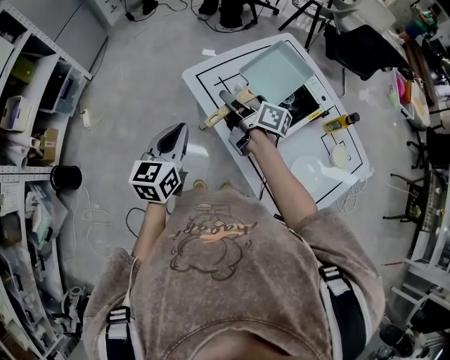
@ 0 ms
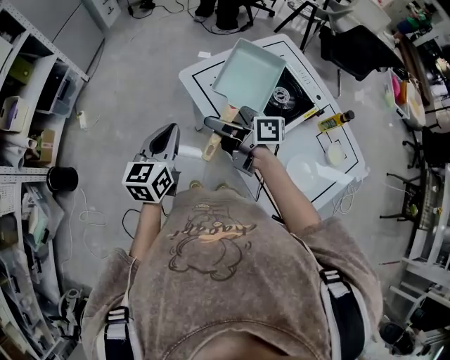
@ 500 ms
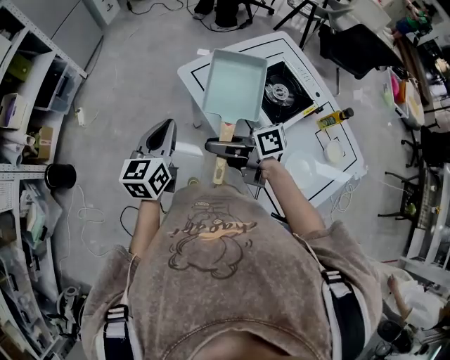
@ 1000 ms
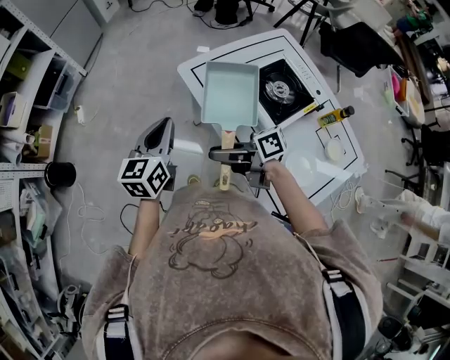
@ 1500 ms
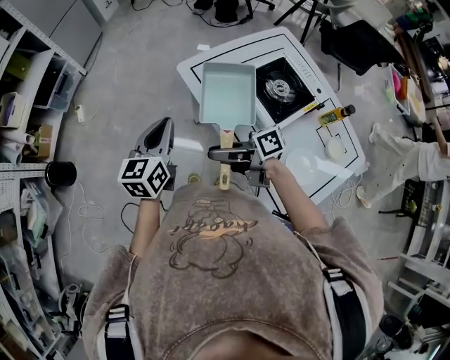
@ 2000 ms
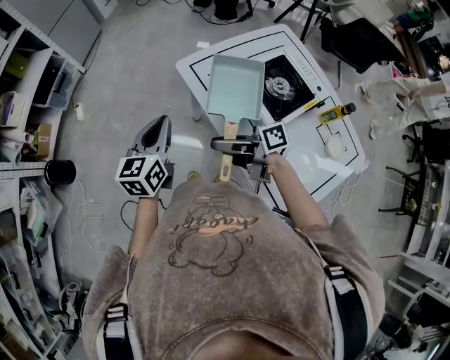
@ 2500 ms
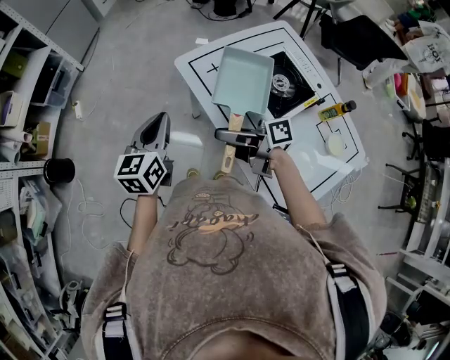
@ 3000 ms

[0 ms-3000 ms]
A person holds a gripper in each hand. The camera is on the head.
0 ms to 1500 ms: The right gripper heads backward and to the left, covering roughly 20 cm, and changes its angle by roughly 40 degrees.
1500 ms to 3000 ms: There are only small adjustments of the grippers.

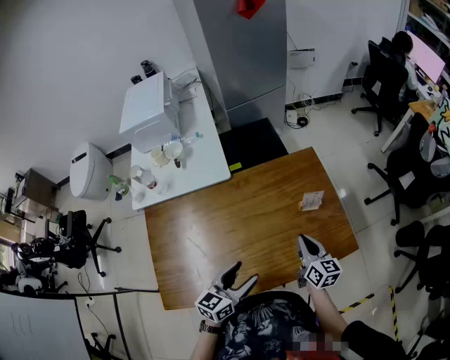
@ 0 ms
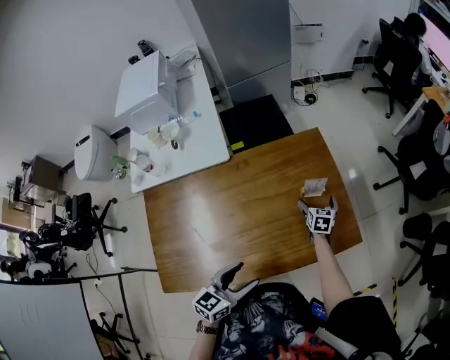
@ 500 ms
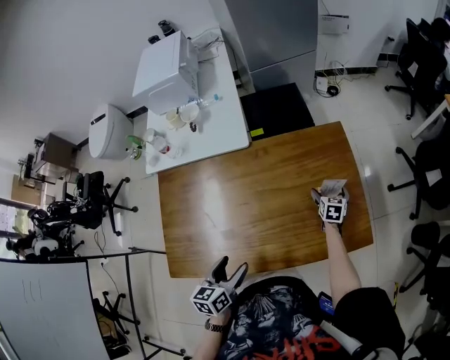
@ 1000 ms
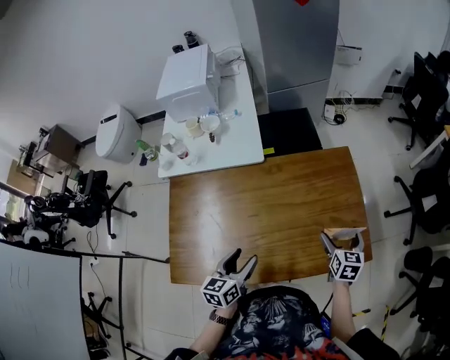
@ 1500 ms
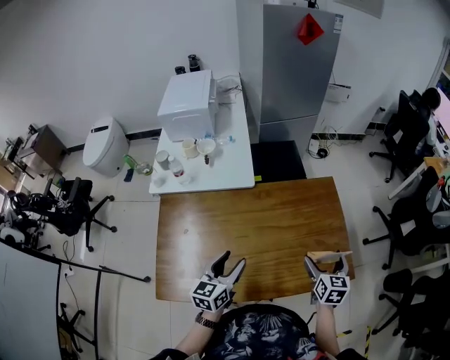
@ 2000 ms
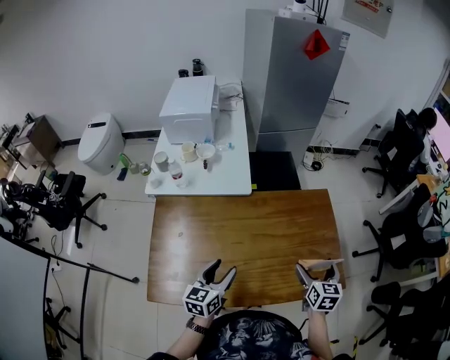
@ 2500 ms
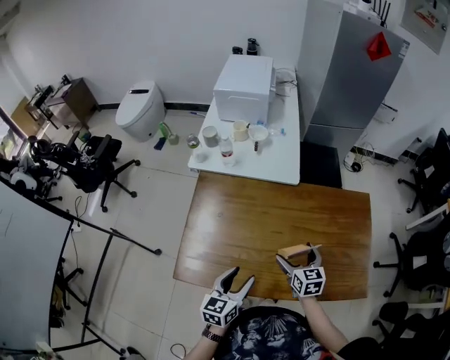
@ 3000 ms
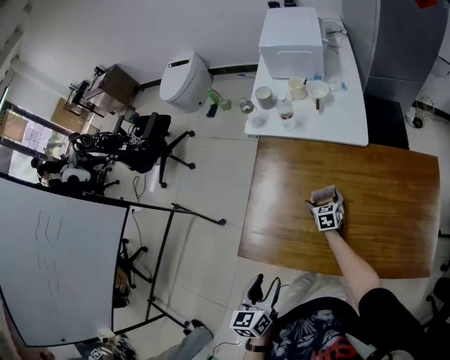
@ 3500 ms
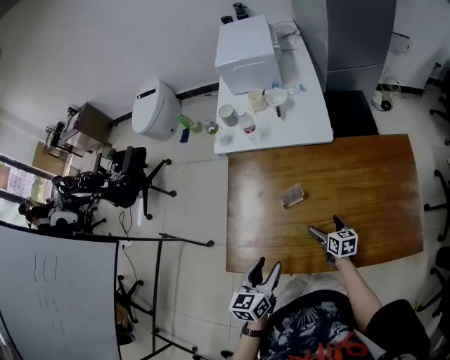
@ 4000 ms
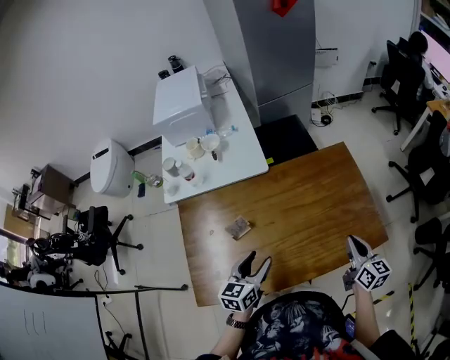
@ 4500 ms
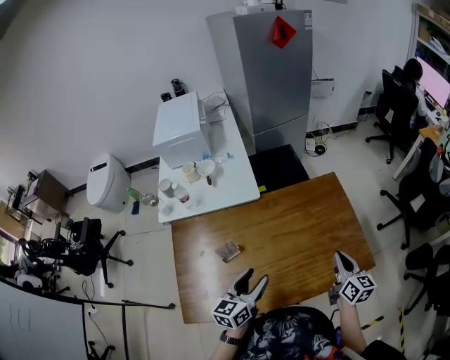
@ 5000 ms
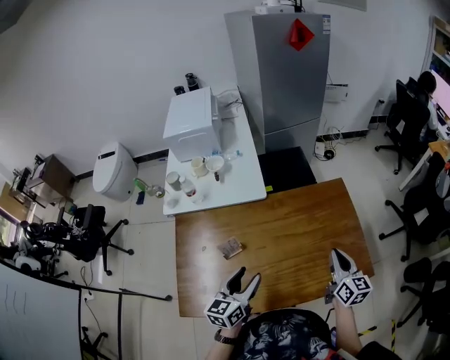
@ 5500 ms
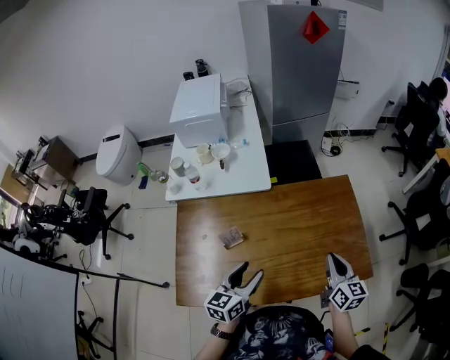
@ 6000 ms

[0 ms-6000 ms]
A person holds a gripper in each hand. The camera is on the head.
0 ms to 2000 ms: The right gripper goes downward and returns, approximately 20 cm each way, swivels roughly 20 degrees, and opens, while the left gripper travels to the left by approximately 10 cm, and turns by some 20 degrees.
2000 ms to 4000 ms: The left gripper changes place by approximately 20 cm. The right gripper ends up about 35 cm from where it was, and changes its angle by about 30 degrees.
4000 ms to 6000 ms: The left gripper moves some 20 cm, and rotates some 20 degrees. The right gripper is displaced upward by roughly 25 cm, changes its angle by approximately 30 degrees, and closes up.

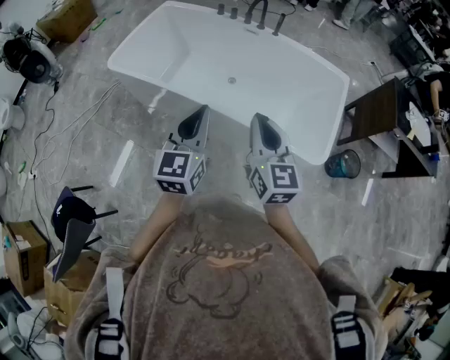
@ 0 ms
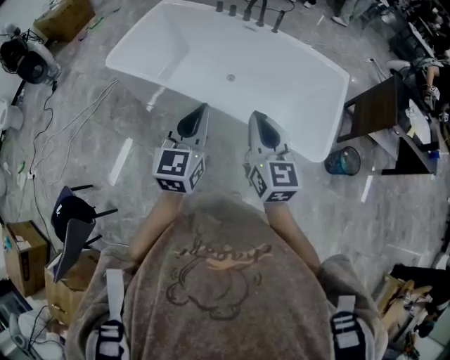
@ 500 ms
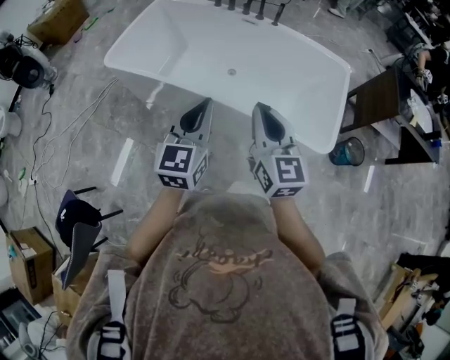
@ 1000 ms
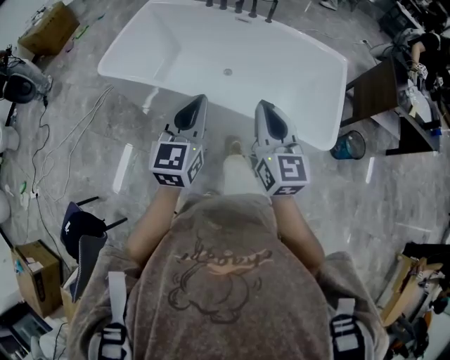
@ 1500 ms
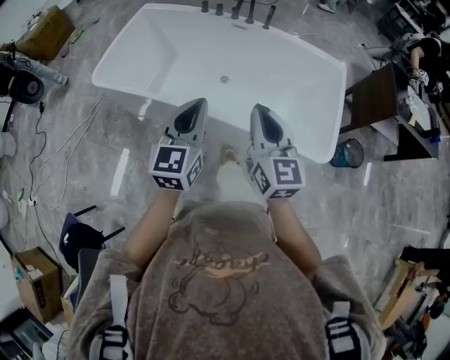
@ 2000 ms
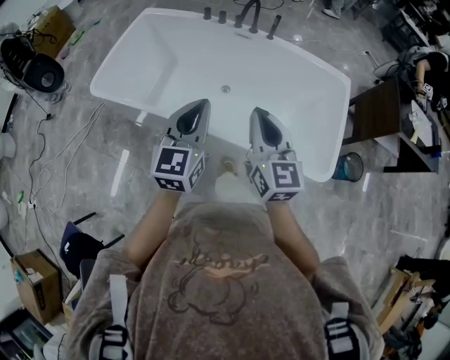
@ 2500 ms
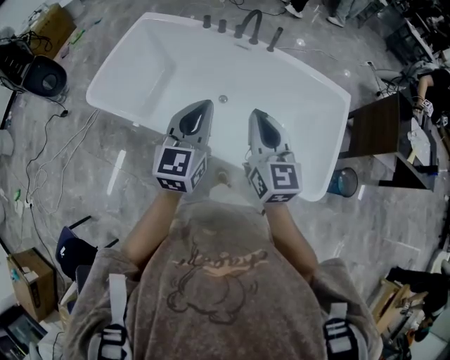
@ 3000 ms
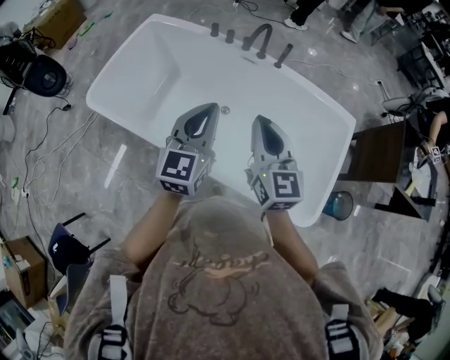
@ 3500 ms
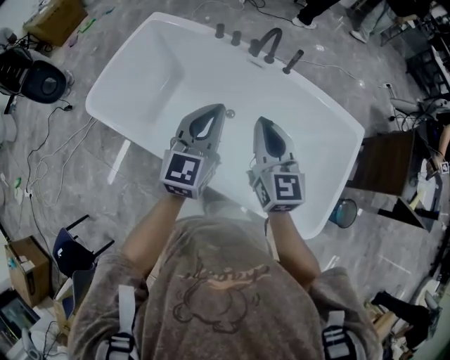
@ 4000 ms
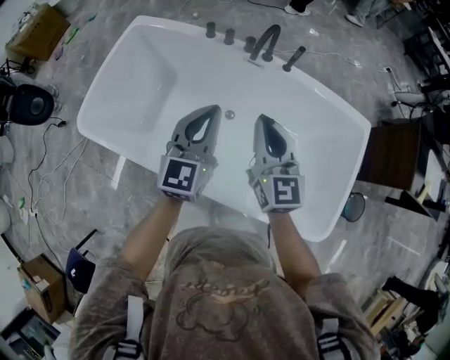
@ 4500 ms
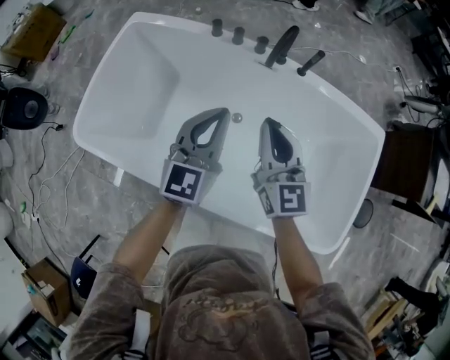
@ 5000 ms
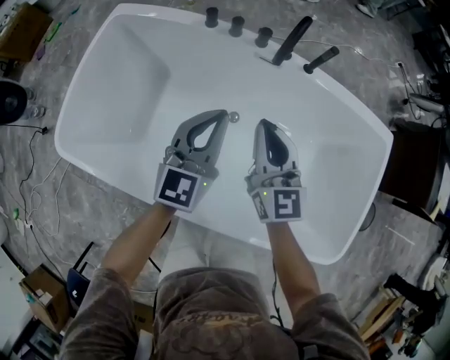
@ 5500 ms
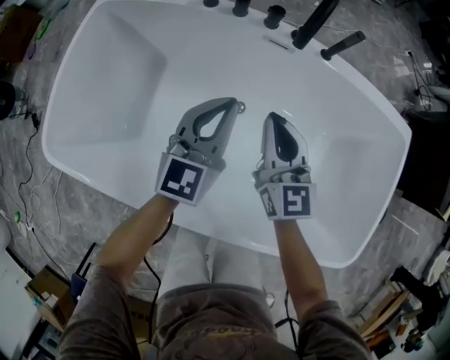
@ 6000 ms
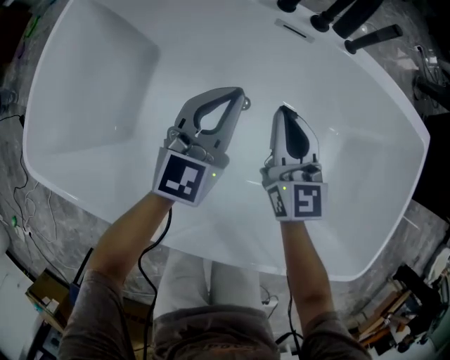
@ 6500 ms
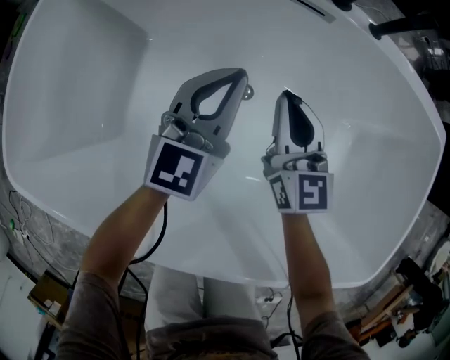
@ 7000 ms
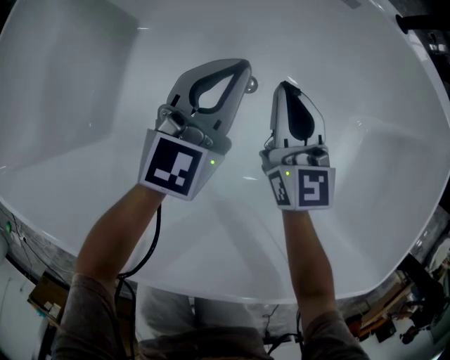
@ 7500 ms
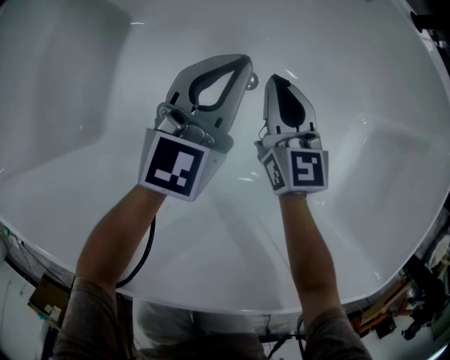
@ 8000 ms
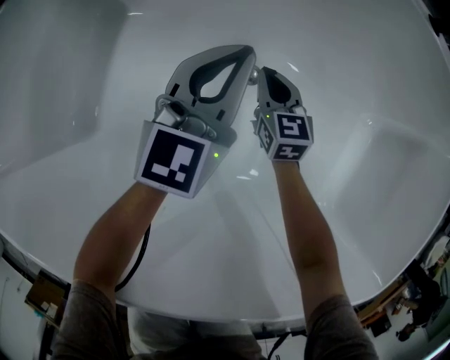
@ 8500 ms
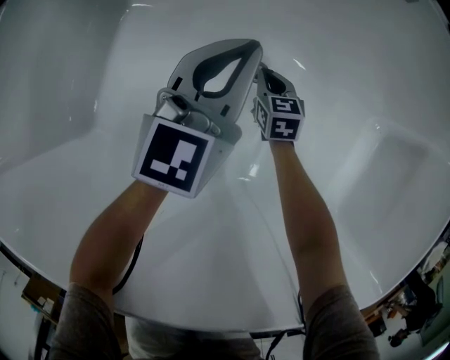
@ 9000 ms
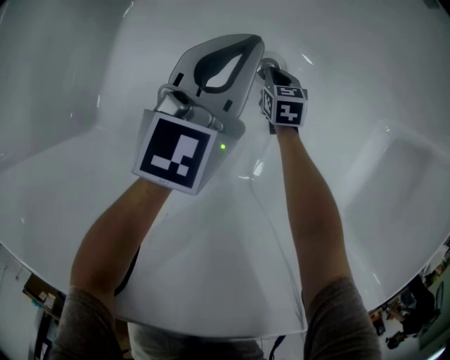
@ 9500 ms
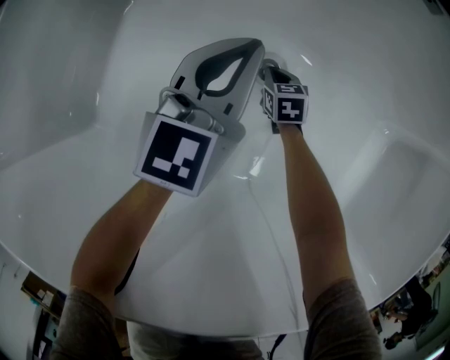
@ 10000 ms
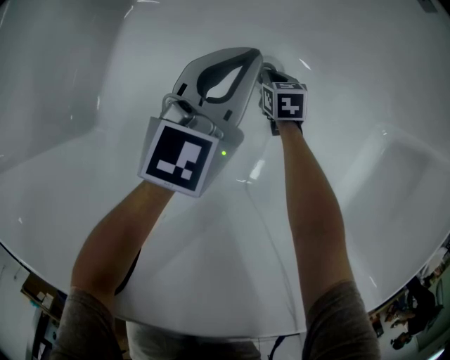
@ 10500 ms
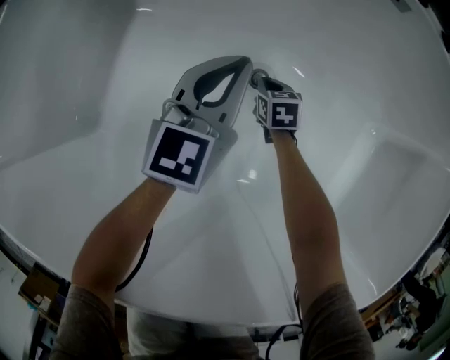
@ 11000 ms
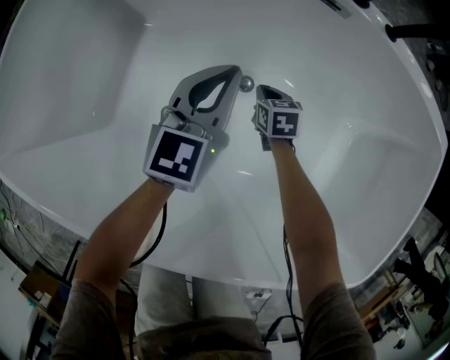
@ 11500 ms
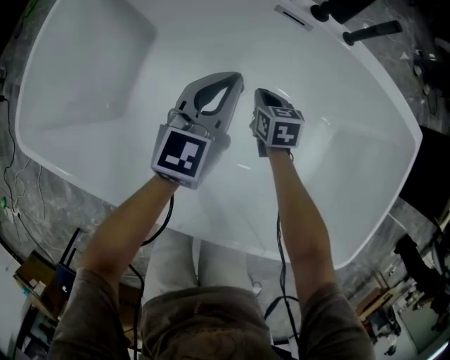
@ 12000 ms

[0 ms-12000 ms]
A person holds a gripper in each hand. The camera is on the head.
0 ms to 2000 ms: Both grippers move forward, about 10 cm.
2000 ms to 4000 ms: The grippers both shift forward by about 35 cm.
4000 ms to 6000 ms: The two grippers go about 35 cm downward and forward.
6000 ms to 8000 ms: Both grippers travel together downward, approximately 35 cm.
8000 ms to 10000 ms: The right gripper travels downward by some 30 cm, and angles its fingers downward, by roughly 40 degrees, while the left gripper travels downward by some 10 cm.
10000 ms to 12000 ms: Both grippers move upward, approximately 30 cm.

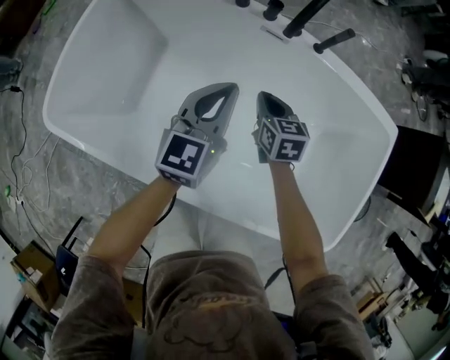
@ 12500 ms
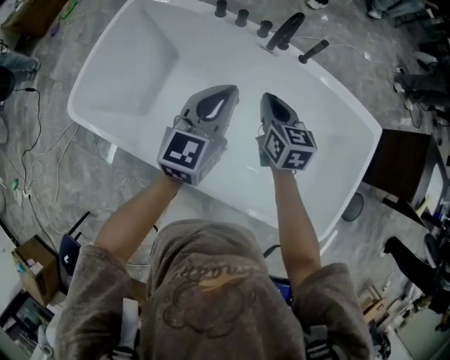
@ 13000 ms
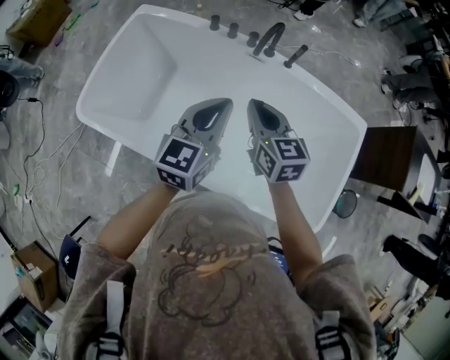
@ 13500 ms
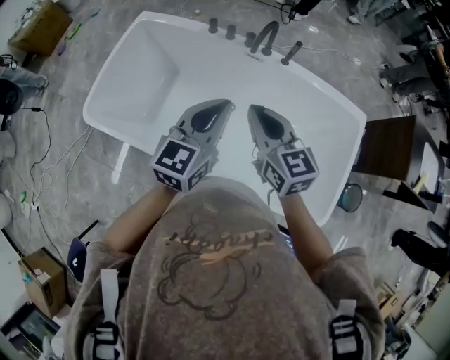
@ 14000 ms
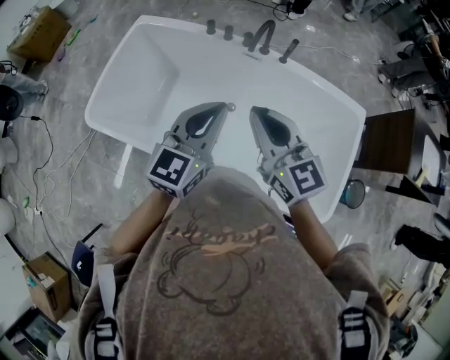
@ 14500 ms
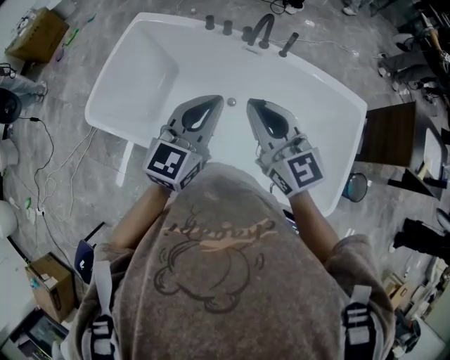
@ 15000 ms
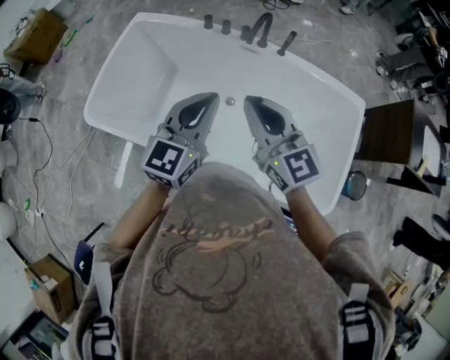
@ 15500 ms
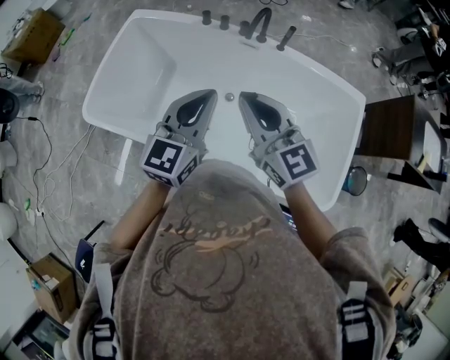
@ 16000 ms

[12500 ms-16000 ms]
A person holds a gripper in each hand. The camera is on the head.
12500 ms to 14500 ms: The grippers both shift upward and backward by about 35 cm. The right gripper points its fingers some 30 degrees further upward.
14500 ms to 16000 ms: There are only small adjustments of the grippers.

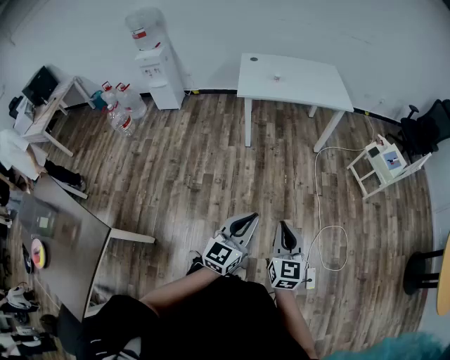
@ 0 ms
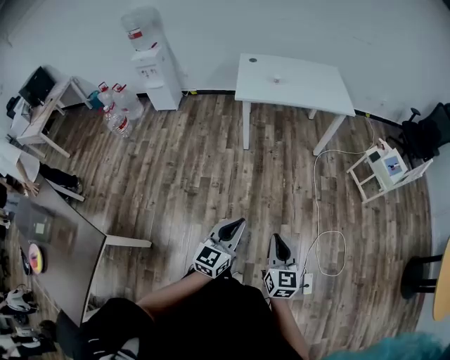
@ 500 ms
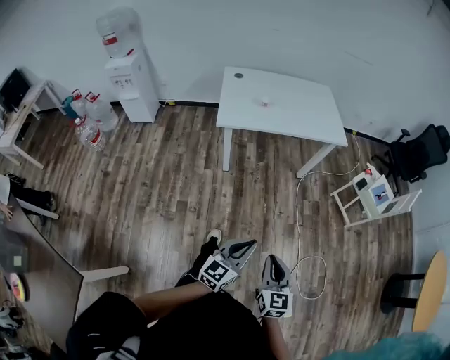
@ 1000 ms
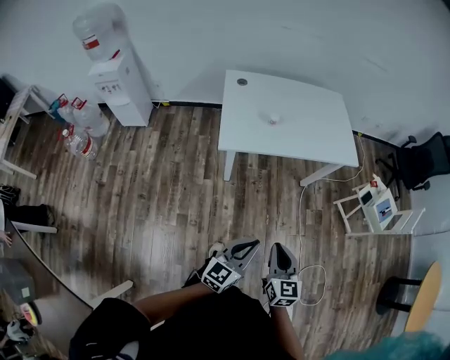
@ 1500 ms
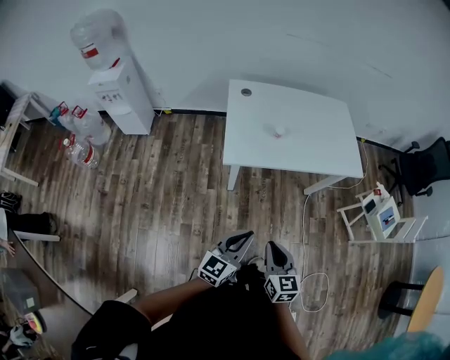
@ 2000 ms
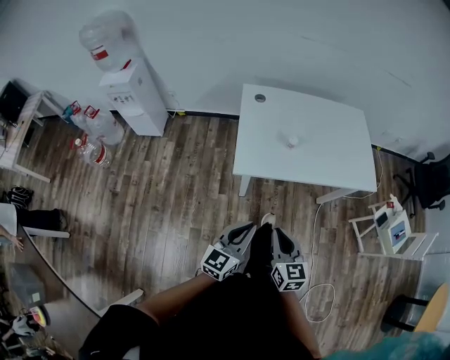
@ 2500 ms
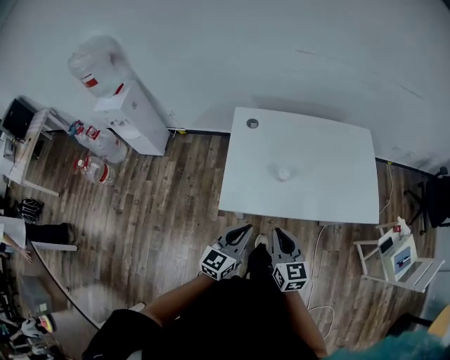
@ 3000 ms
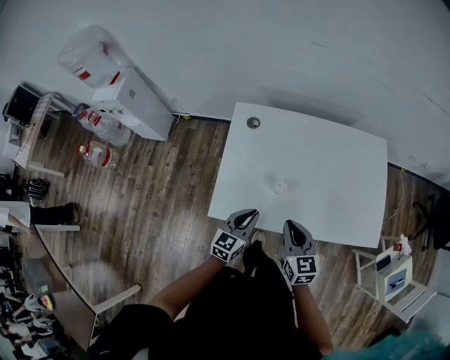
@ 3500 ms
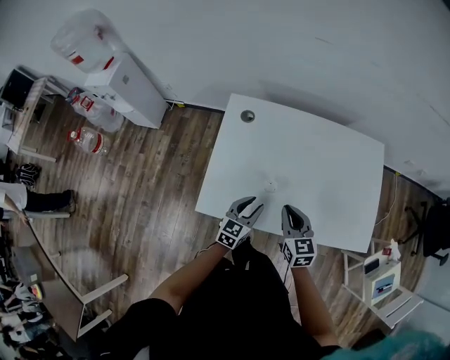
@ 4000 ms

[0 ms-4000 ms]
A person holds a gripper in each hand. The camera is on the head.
0 ms to 2000 ms: Both grippers are carried forward and to the left, approximately 50 cm.
2000 ms to 4000 ms: Both grippers are carried forward, roughly 50 cm. The left gripper swivels some 20 degrees, and opens its fingers.
